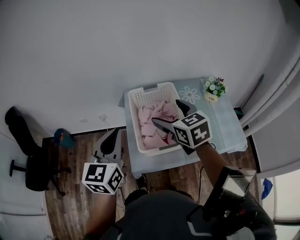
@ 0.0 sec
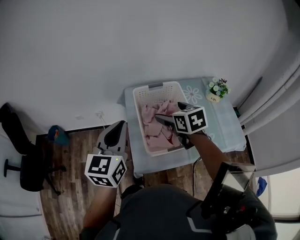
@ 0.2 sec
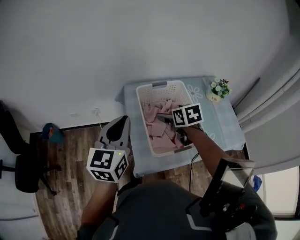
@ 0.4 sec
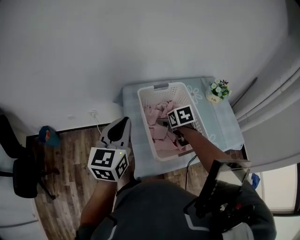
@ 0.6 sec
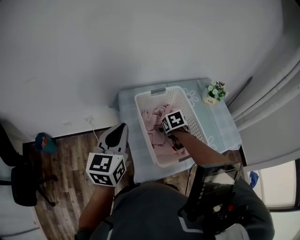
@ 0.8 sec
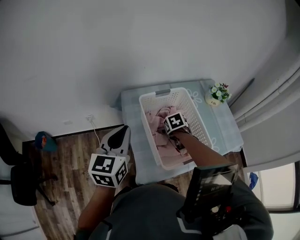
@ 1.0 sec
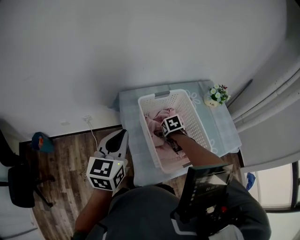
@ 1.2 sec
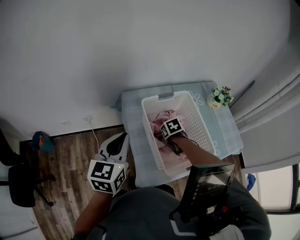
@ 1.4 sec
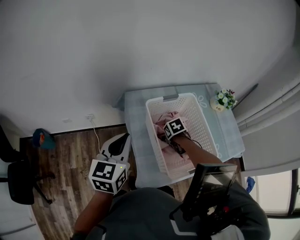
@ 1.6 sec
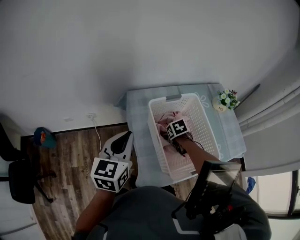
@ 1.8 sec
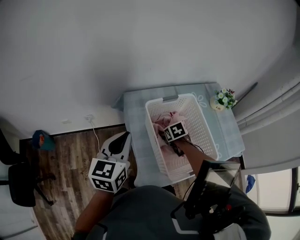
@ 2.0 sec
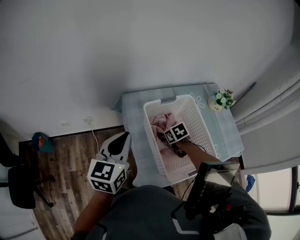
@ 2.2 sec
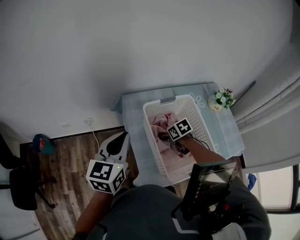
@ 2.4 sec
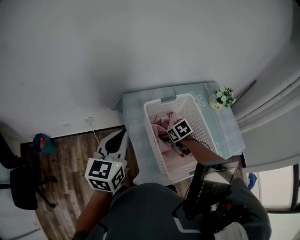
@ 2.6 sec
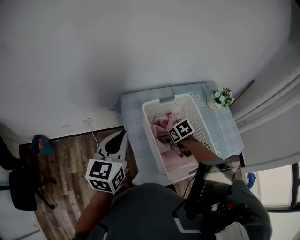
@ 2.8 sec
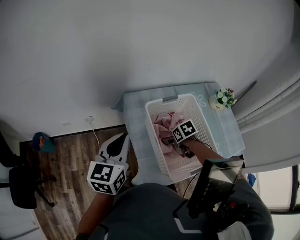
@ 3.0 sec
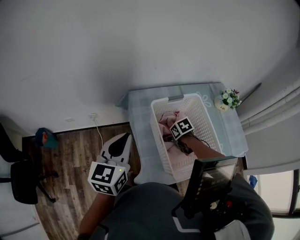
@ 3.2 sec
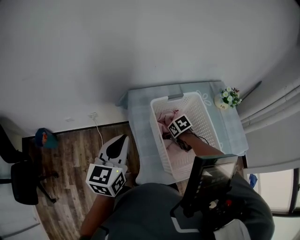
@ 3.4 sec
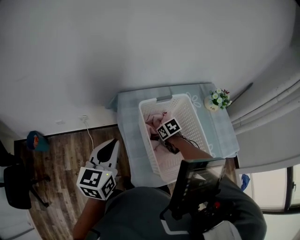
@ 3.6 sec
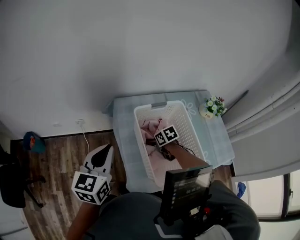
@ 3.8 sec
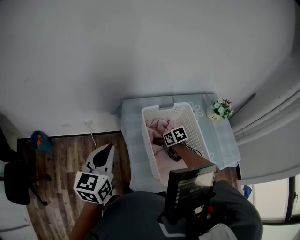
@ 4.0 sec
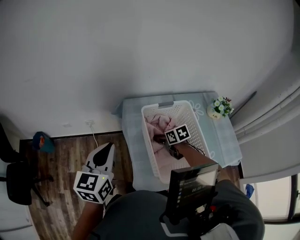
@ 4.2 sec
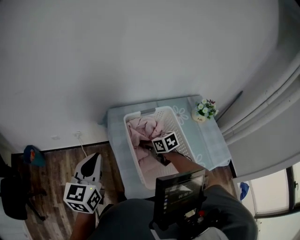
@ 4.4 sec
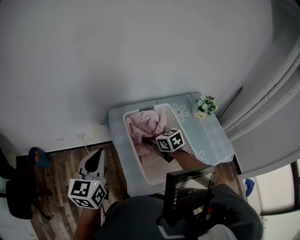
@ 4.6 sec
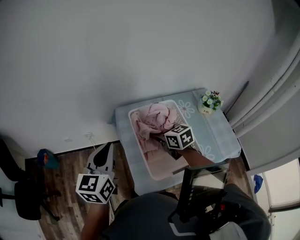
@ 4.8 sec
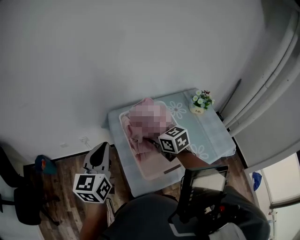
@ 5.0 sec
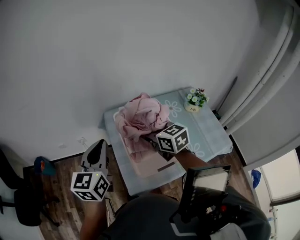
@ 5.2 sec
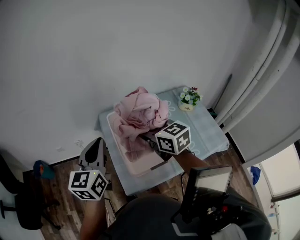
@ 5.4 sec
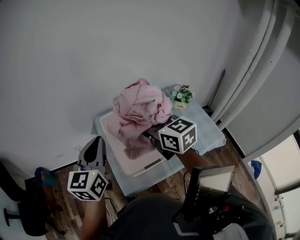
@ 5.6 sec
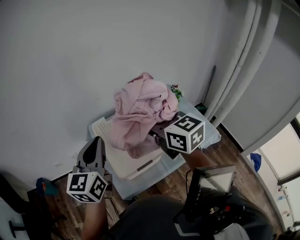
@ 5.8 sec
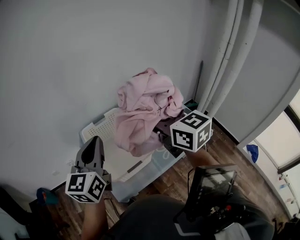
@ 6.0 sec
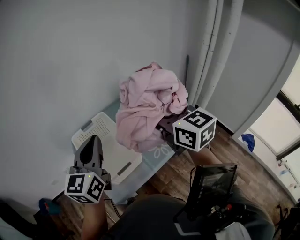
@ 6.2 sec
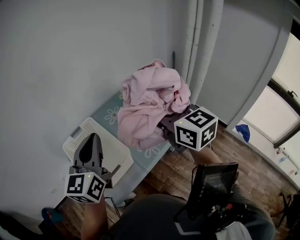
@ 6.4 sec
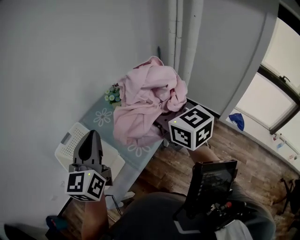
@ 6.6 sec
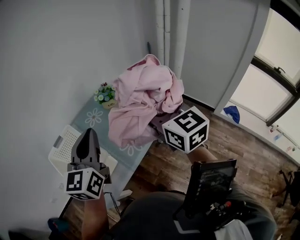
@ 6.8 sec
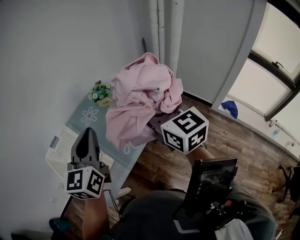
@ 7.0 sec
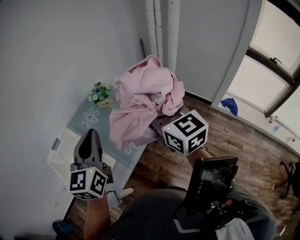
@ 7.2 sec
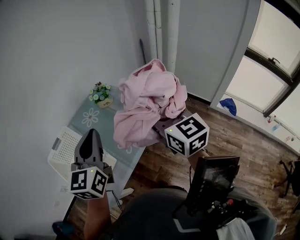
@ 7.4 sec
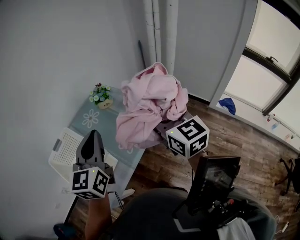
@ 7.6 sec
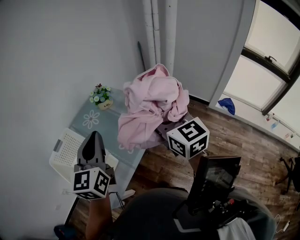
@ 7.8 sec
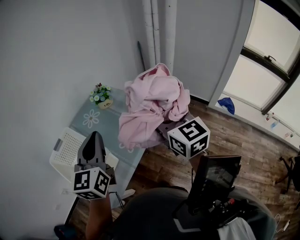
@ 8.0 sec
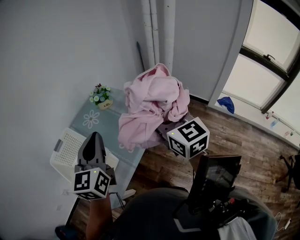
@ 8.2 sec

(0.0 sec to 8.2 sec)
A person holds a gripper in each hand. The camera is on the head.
0.0 sec - 1.6 sec: The right gripper travels downward by roughly 30 cm, and tips its fingers downward by roughly 50 degrees; the left gripper shifts about 20 cm forward, downward and to the left.
1.6 sec - 3.2 sec: The right gripper closes, then opens again.
3.2 sec - 5.0 sec: The right gripper is displaced upward by approximately 25 cm, angles its fingers upward, by about 50 degrees, and closes. The left gripper goes about 5 cm upward.
5.0 sec - 6.6 sec: The right gripper shifts by some 50 cm, and turns by approximately 40 degrees. Meanwhile the left gripper ends up approximately 40 cm from where it was, and swivels some 30 degrees.
6.6 sec - 8.2 sec: The left gripper changes place by about 5 cm. The right gripper ends up about 5 cm from where it was.

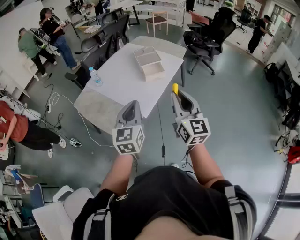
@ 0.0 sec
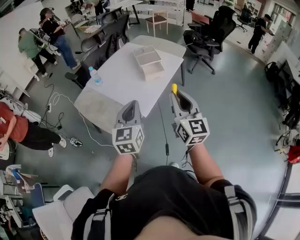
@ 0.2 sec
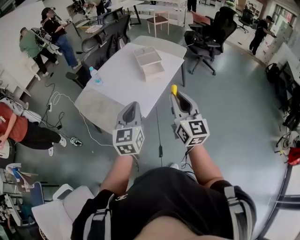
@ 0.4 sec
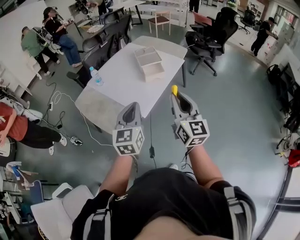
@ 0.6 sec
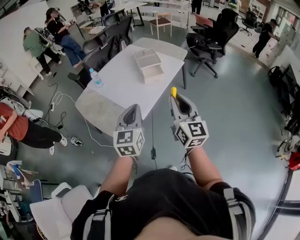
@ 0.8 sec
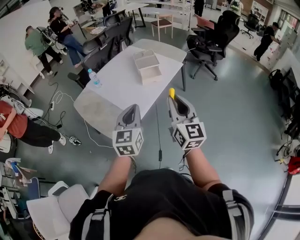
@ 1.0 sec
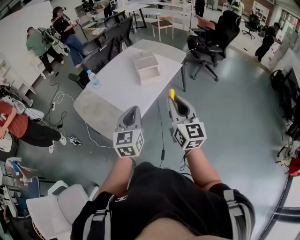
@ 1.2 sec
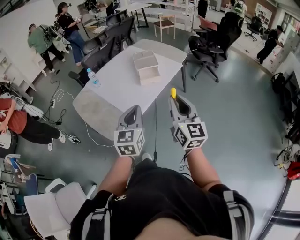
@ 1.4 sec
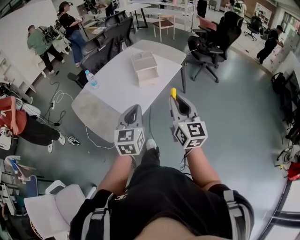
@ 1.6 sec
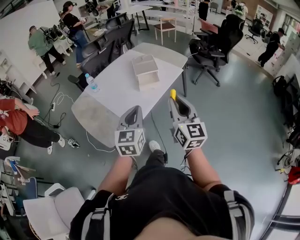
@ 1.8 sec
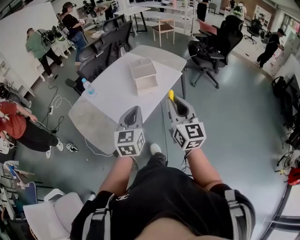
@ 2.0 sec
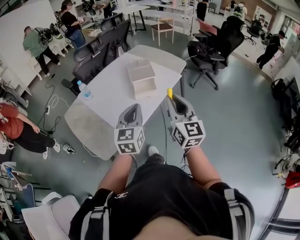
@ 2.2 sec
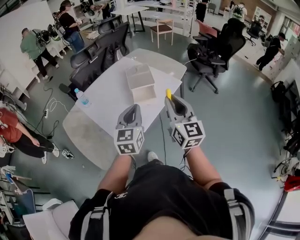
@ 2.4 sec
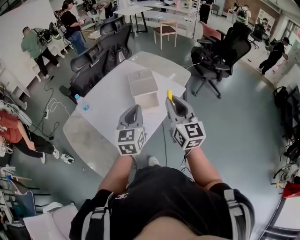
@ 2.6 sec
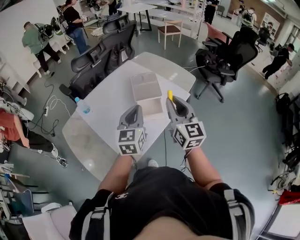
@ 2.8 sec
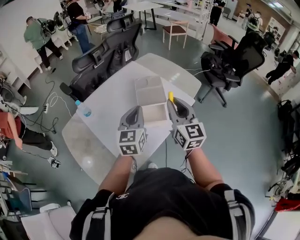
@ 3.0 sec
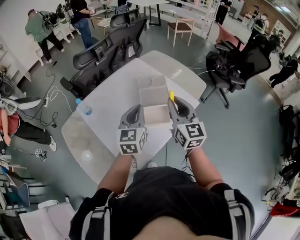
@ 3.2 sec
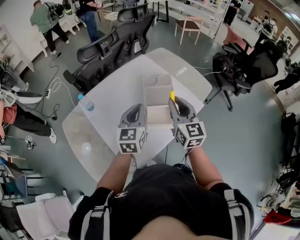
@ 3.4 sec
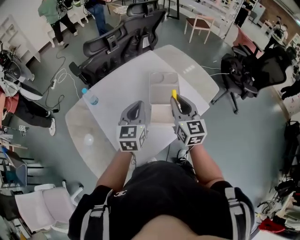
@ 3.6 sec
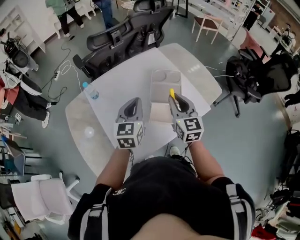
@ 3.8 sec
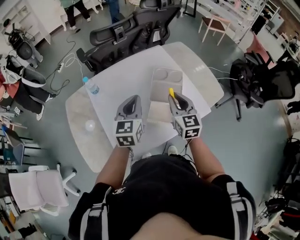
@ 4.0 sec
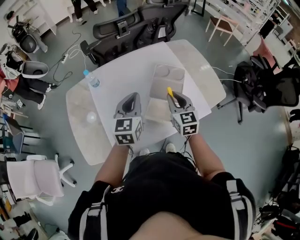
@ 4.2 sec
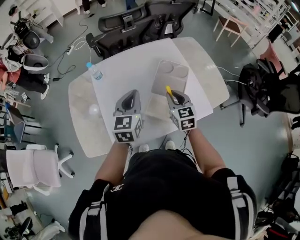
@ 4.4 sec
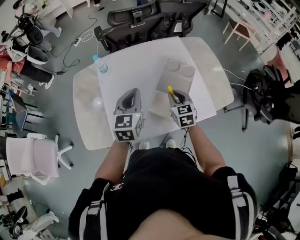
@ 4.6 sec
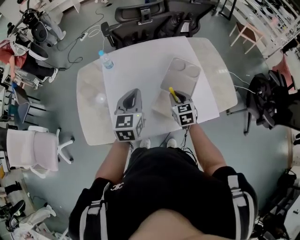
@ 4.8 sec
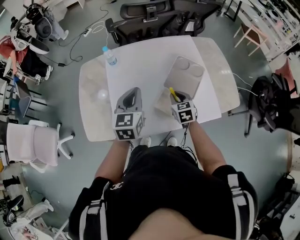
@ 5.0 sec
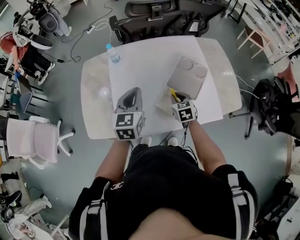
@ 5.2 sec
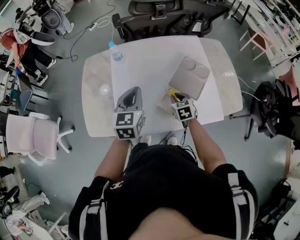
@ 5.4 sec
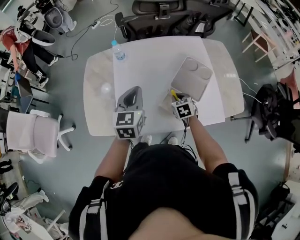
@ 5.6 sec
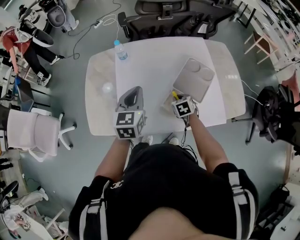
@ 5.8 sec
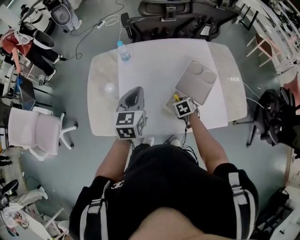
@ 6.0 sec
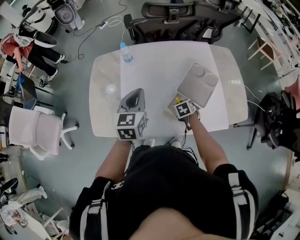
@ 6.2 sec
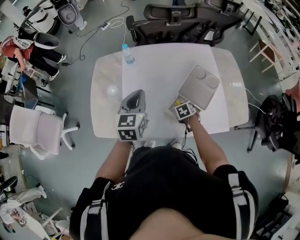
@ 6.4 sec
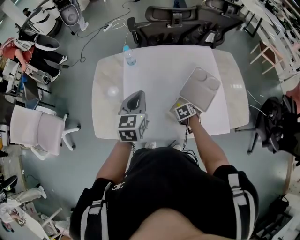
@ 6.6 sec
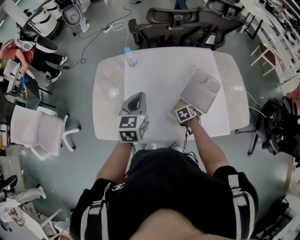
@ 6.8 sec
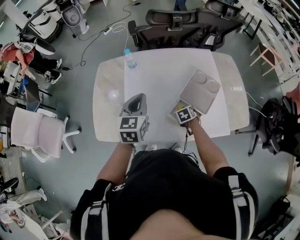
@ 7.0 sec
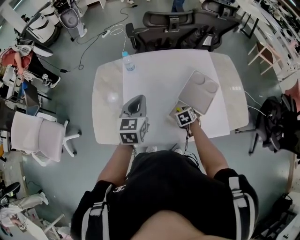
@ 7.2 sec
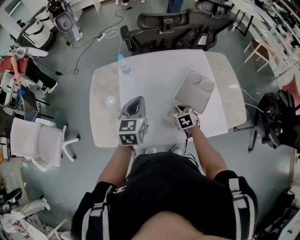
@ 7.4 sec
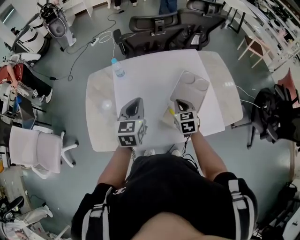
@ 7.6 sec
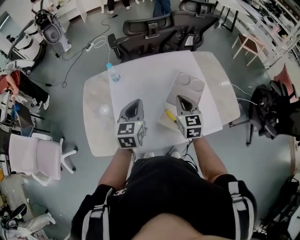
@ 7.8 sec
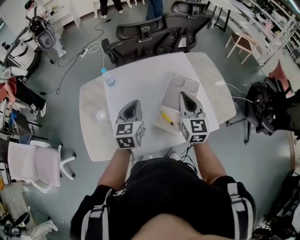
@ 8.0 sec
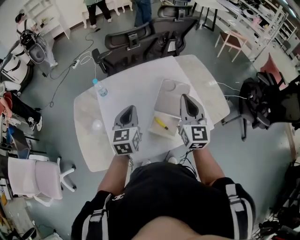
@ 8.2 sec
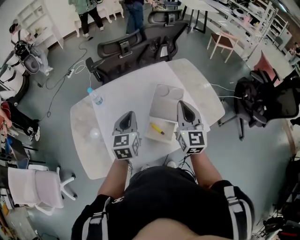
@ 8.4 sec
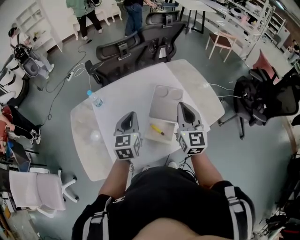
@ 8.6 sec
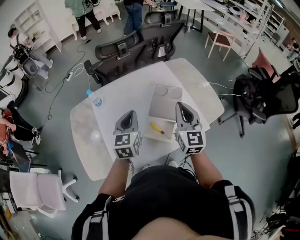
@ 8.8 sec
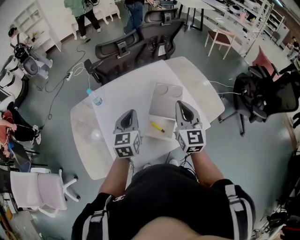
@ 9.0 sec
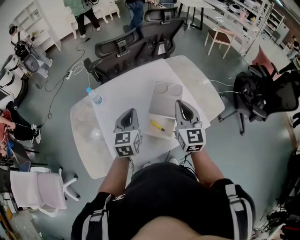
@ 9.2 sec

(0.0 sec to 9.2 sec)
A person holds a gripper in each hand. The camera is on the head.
0.0 sec - 1.6 sec: Both grippers move to the right, roughly 10 cm.
1.6 sec - 3.0 sec: Both grippers travel together forward, some 40 cm.
3.0 sec - 4.6 sec: The left gripper changes place by about 10 cm, and changes its angle by approximately 30 degrees. Meanwhile the right gripper heads downward, covering roughly 20 cm, and tilts its fingers approximately 30 degrees downward.
4.6 sec - 6.2 sec: The right gripper moves downward, some 15 cm, and angles its fingers downward, by roughly 30 degrees; the left gripper goes approximately 10 cm to the left.
6.2 sec - 7.6 sec: The right gripper moves upward, about 15 cm, and points its fingers some 30 degrees further upward.
7.6 sec - 9.2 sec: The right gripper moves upward and to the right, some 20 cm, and tilts its fingers some 30 degrees upward, while the left gripper shifts about 5 cm to the right.

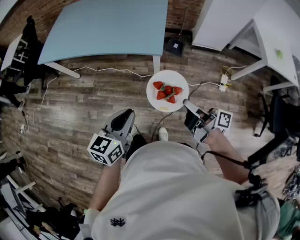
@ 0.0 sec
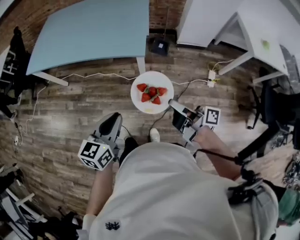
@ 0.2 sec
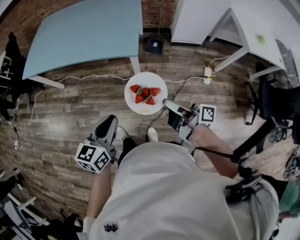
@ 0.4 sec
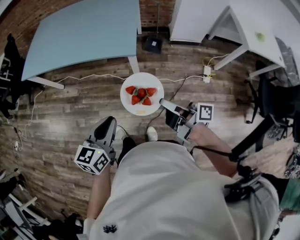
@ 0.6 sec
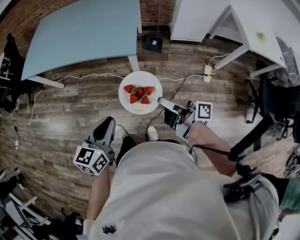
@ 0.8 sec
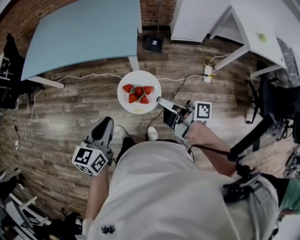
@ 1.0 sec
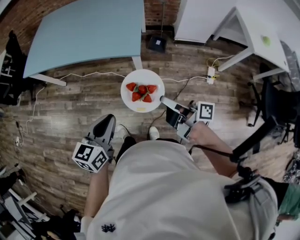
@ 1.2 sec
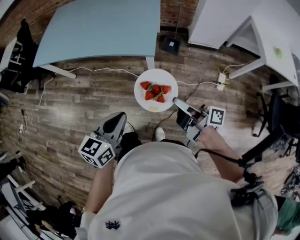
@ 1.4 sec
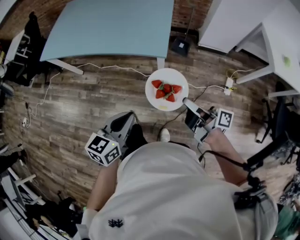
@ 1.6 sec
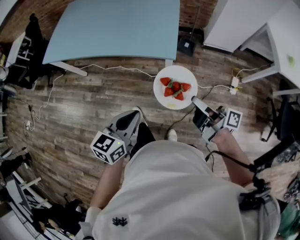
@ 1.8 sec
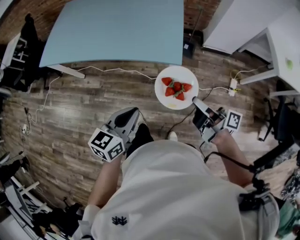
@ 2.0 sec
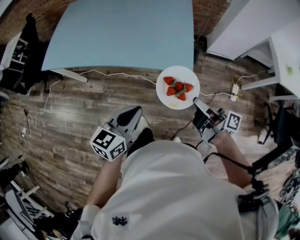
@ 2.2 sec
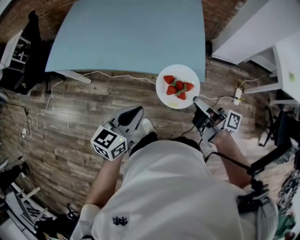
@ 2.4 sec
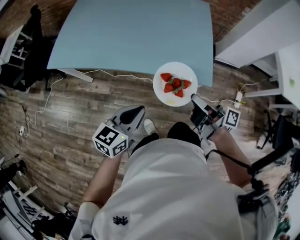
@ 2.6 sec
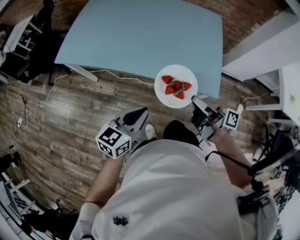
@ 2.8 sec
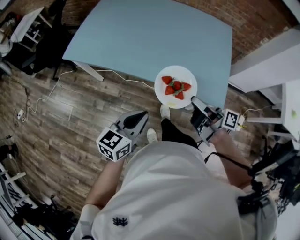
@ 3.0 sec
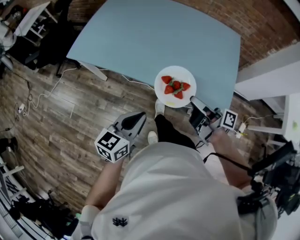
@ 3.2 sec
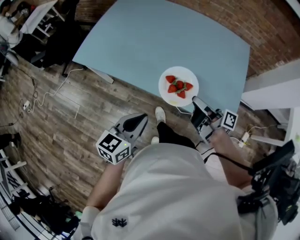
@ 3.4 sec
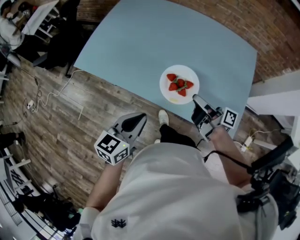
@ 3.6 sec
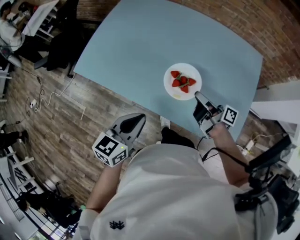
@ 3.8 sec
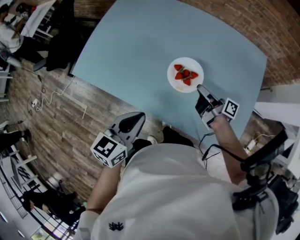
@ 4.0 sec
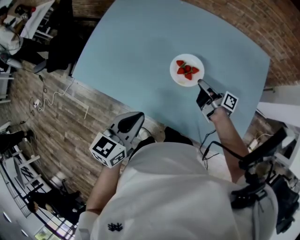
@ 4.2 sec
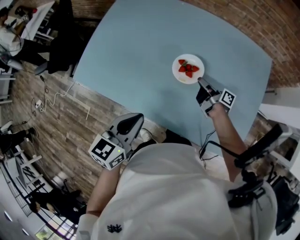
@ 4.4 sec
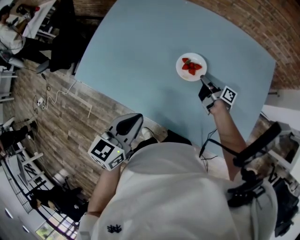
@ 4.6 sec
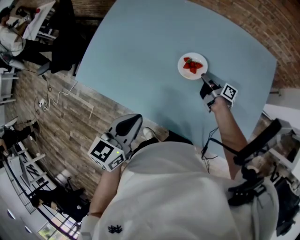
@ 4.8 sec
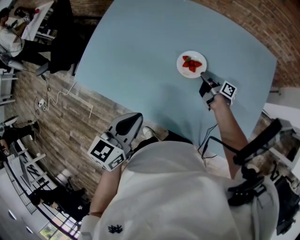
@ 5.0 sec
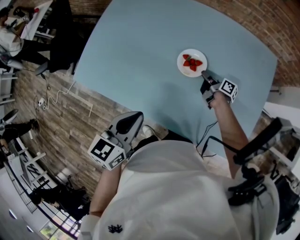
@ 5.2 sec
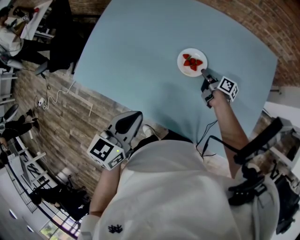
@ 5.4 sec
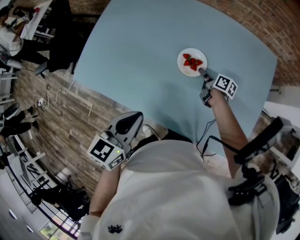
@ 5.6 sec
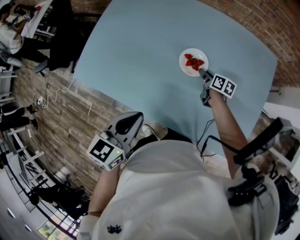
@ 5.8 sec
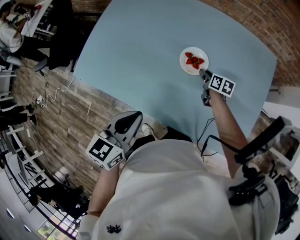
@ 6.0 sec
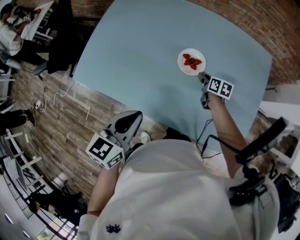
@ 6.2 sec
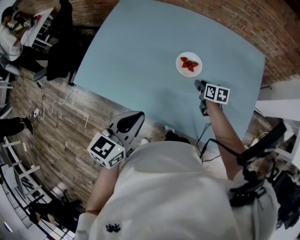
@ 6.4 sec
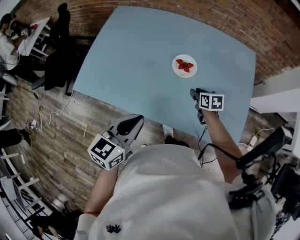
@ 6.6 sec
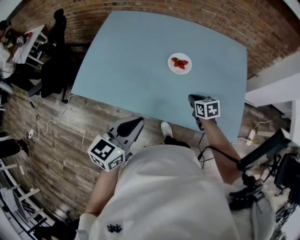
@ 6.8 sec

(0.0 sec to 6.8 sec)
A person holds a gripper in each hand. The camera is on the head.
0.0 sec - 1.4 sec: The grippers make only small movements.
1.4 sec - 2.8 sec: Both grippers move to the left and forward, roughly 40 cm.
2.8 sec - 4.0 sec: The two grippers go roughly 30 cm forward.
4.0 sec - 5.4 sec: The right gripper moves downward and forward, roughly 15 cm, and rotates about 20 degrees, while the left gripper travels forward by approximately 5 cm.
5.4 sec - 6.8 sec: The right gripper travels backward and upward by some 20 cm, rotates around the line of its fingers by about 50 degrees, counterclockwise from behind, and opens, then closes once more; the left gripper goes about 10 cm backward.
